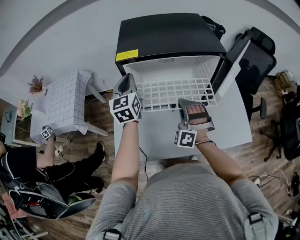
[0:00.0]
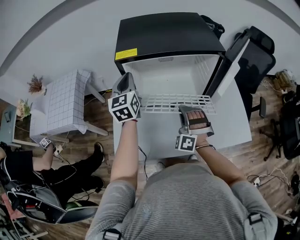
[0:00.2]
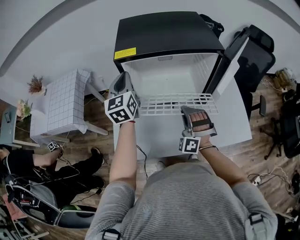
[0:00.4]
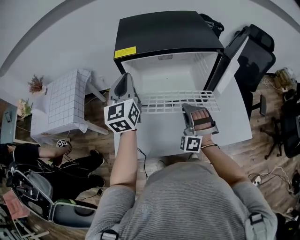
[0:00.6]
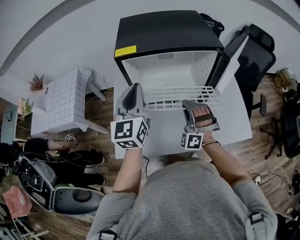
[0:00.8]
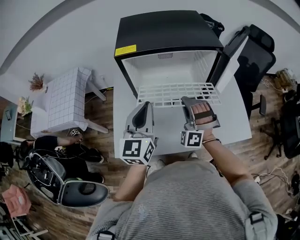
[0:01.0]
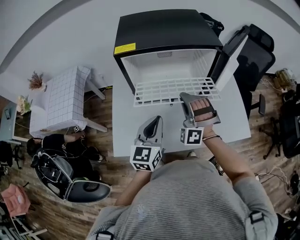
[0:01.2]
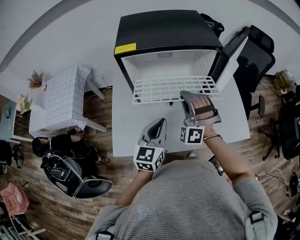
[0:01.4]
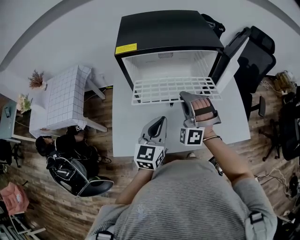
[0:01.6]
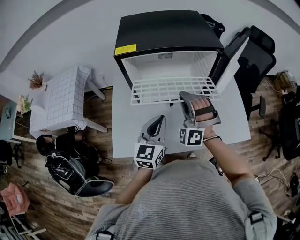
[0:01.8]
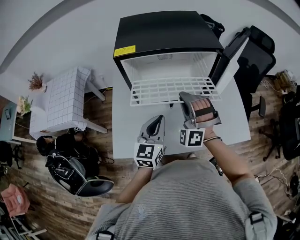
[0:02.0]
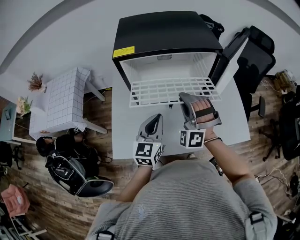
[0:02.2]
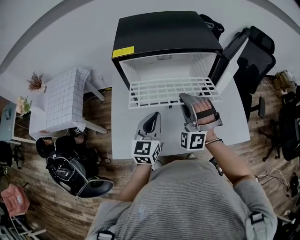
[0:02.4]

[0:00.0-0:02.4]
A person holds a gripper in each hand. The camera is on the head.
0.0 to 1.2 s: The left gripper is displaced backward and to the right by roughly 25 cm.
1.2 to 2.4 s: The grippers stay close to where they were, moving slightly.

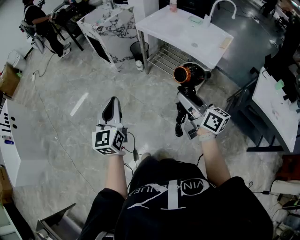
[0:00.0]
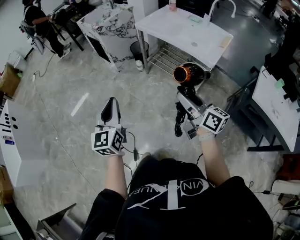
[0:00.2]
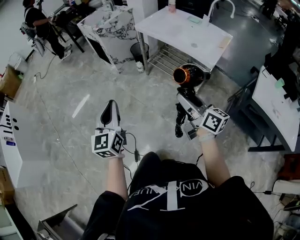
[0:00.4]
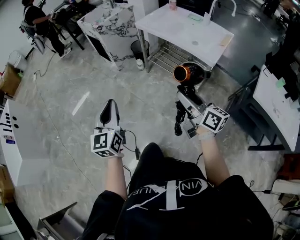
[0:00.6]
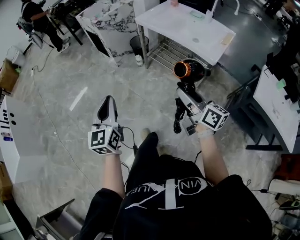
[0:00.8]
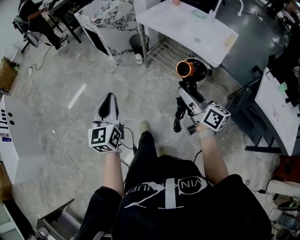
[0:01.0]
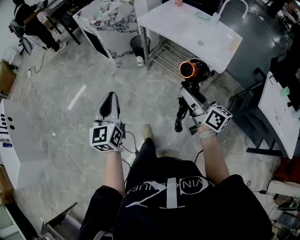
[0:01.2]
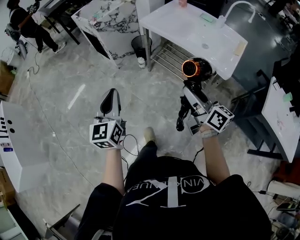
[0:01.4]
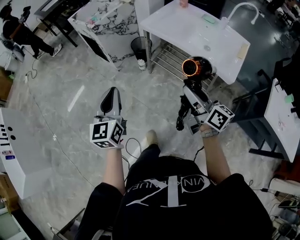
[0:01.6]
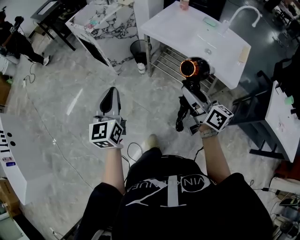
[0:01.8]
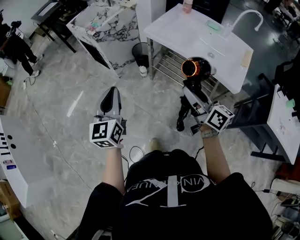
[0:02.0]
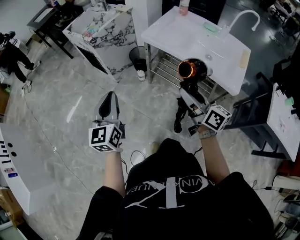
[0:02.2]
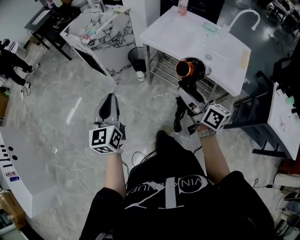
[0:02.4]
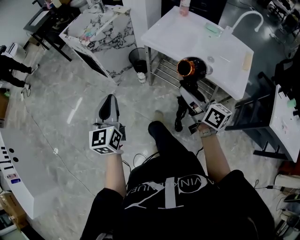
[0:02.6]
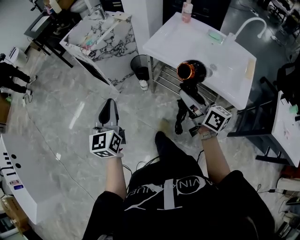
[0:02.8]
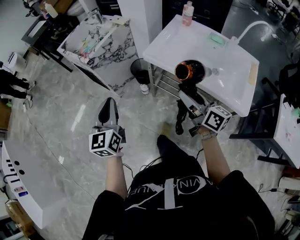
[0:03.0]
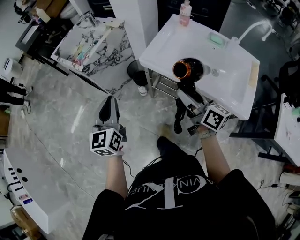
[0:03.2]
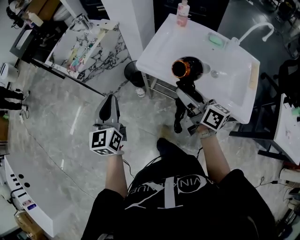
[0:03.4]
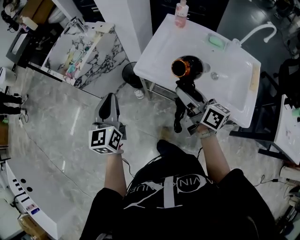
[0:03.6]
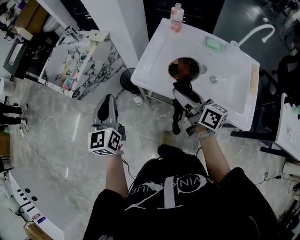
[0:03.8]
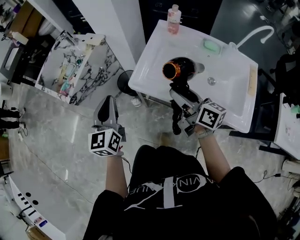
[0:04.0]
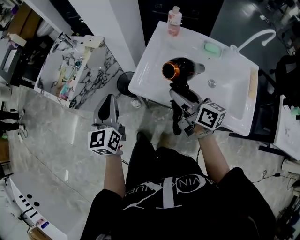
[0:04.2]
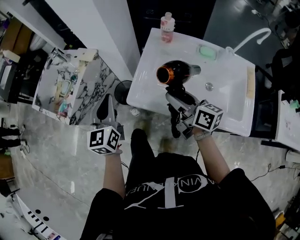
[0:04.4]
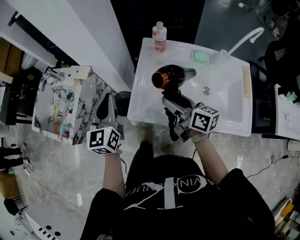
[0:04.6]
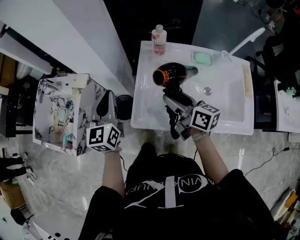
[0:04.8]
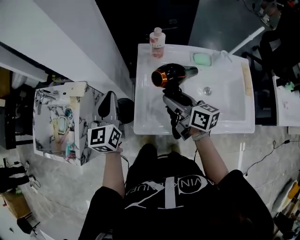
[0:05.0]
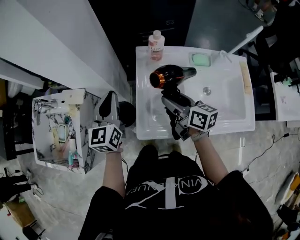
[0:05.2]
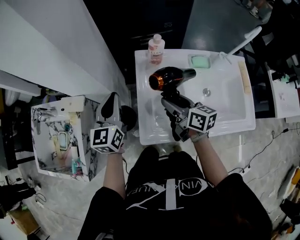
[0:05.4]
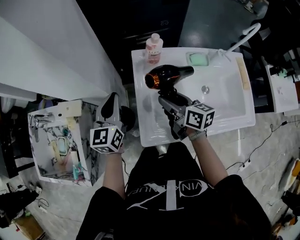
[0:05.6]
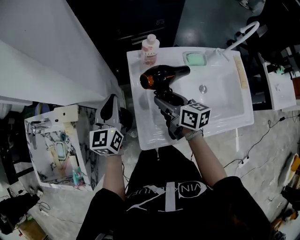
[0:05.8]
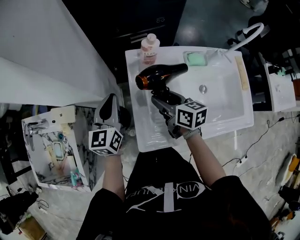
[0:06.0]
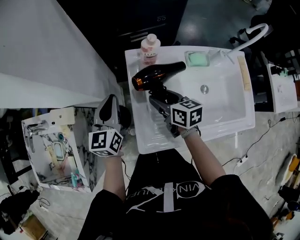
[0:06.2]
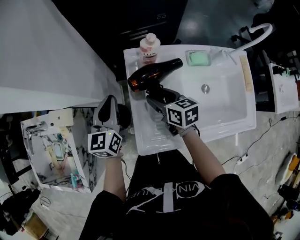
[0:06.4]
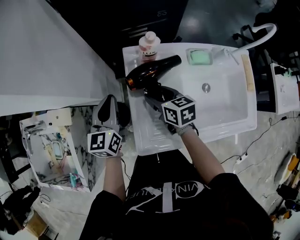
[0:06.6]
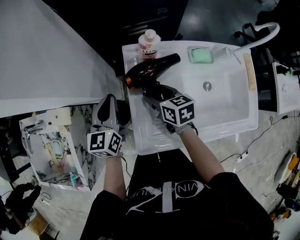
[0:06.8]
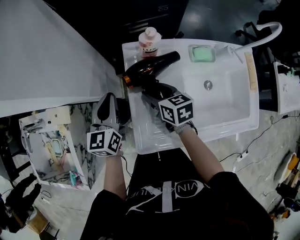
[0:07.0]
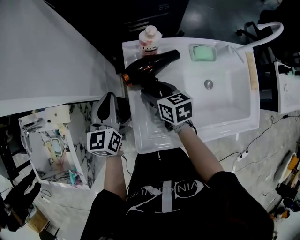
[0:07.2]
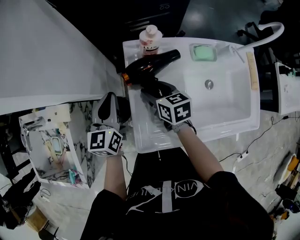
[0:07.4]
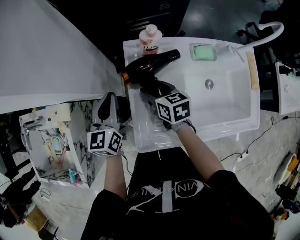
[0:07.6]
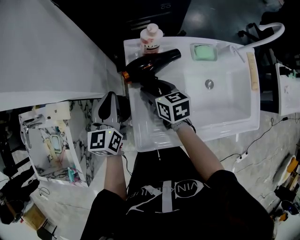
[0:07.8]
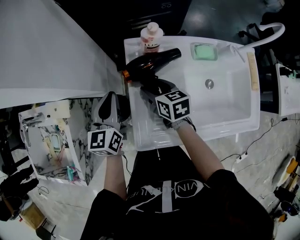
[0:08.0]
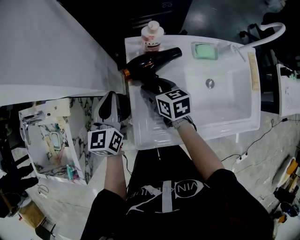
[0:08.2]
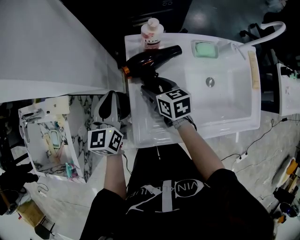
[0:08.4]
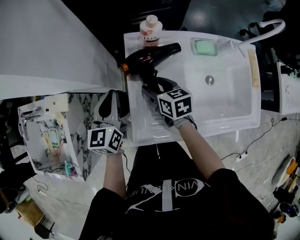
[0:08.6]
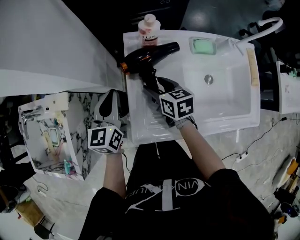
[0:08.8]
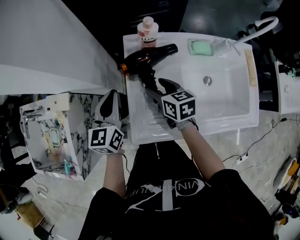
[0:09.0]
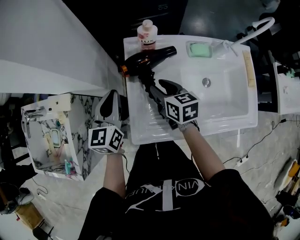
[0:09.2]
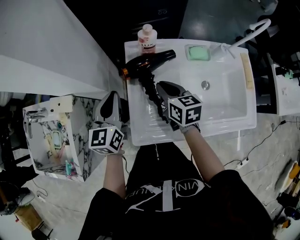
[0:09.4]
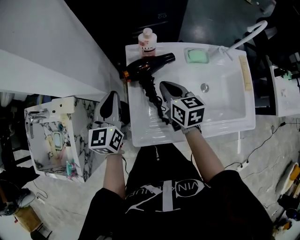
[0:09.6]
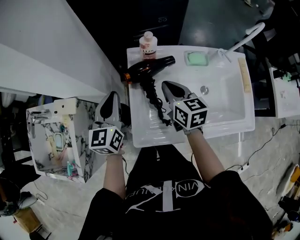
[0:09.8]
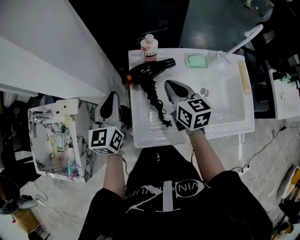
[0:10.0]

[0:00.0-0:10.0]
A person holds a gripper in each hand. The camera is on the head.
0.0 to 1.4 s: The grippers both shift forward by approximately 15 cm.
1.4 to 2.8 s: The two grippers go roughly 25 cm forward.
2.8 to 4.2 s: The two grippers go approximately 30 cm forward.
4.2 to 5.8 s: The right gripper ends up approximately 20 cm from where it was, and turns by some 30 degrees. The left gripper ends up roughly 30 cm from where it was, and changes its angle by some 30 degrees.
5.8 to 7.2 s: The left gripper goes roughly 5 cm downward. Meanwhile the right gripper goes about 10 cm downward and forward.
7.2 to 8.6 s: There are only small adjustments of the grippers.
8.6 to 10.0 s: The right gripper moves upward and to the right, some 15 cm, changes its angle by some 20 degrees, and closes. Meanwhile the left gripper shifts roughly 10 cm upward.

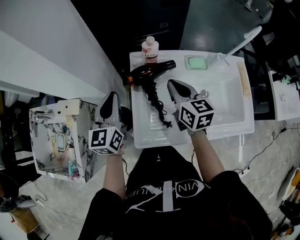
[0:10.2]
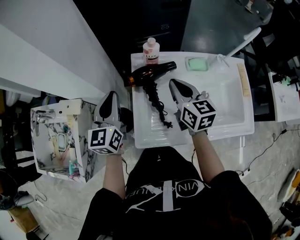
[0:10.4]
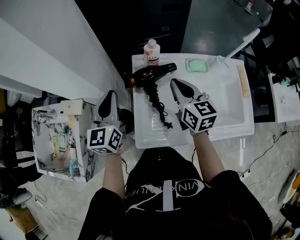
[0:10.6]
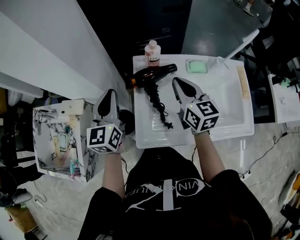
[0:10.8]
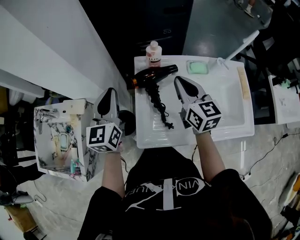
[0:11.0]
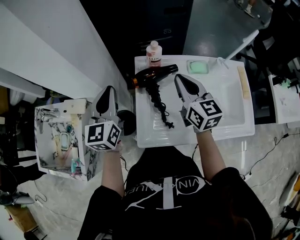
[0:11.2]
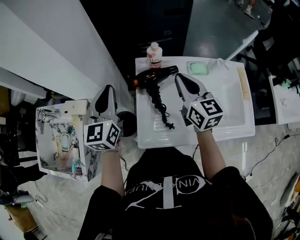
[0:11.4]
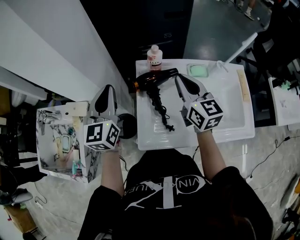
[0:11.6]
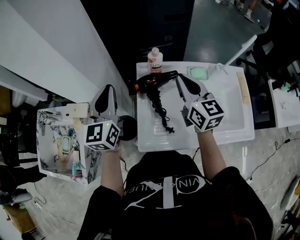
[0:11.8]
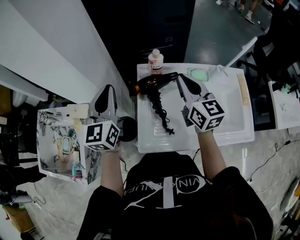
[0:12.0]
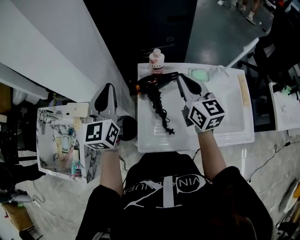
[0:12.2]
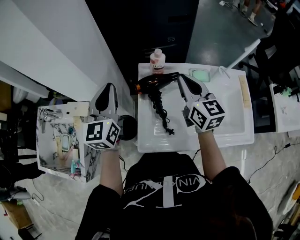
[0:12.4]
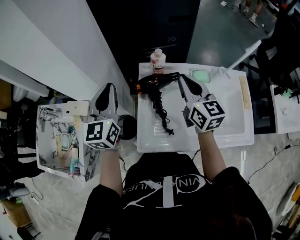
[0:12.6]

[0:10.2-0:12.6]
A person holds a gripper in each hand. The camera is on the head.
10.2 to 11.4 s: Both grippers move upward, roughly 5 cm.
11.4 to 12.6 s: The grippers stay close to where they were, moving slightly.

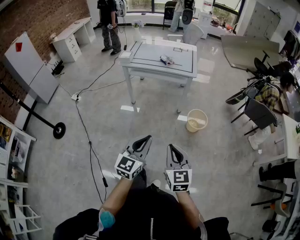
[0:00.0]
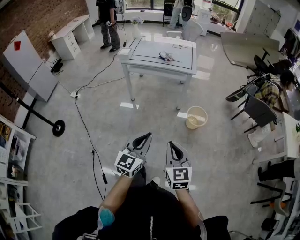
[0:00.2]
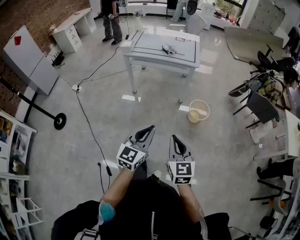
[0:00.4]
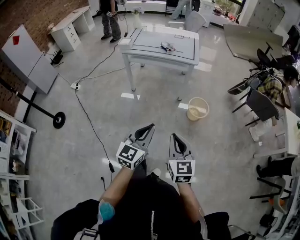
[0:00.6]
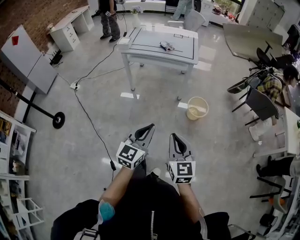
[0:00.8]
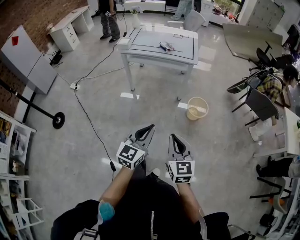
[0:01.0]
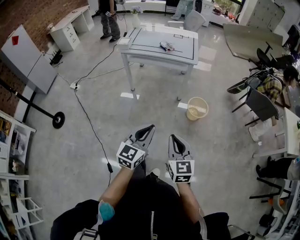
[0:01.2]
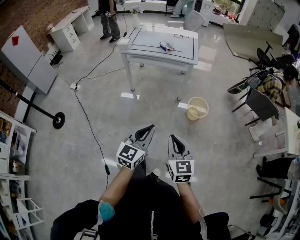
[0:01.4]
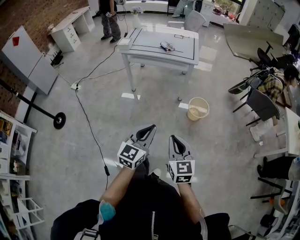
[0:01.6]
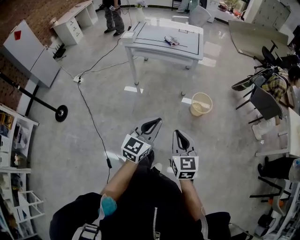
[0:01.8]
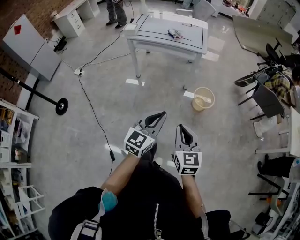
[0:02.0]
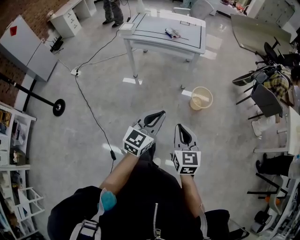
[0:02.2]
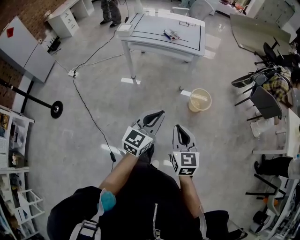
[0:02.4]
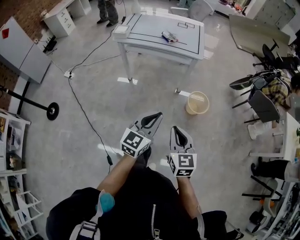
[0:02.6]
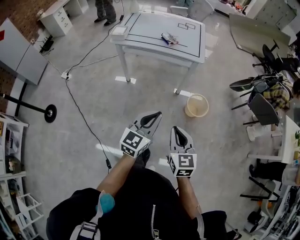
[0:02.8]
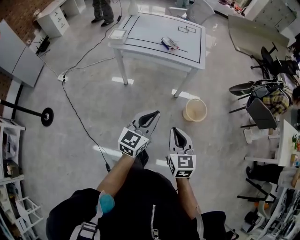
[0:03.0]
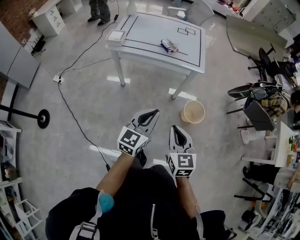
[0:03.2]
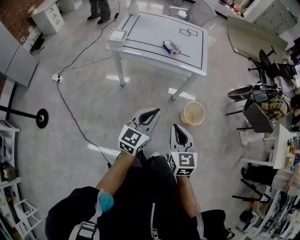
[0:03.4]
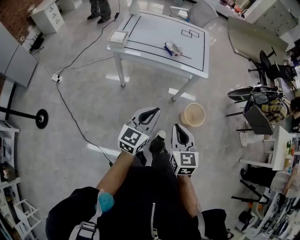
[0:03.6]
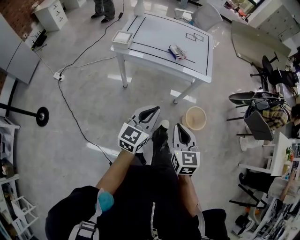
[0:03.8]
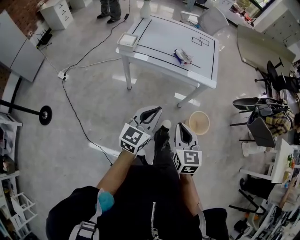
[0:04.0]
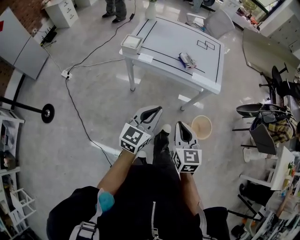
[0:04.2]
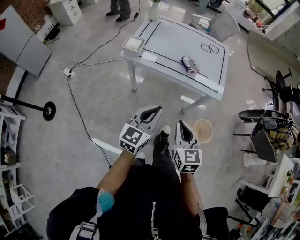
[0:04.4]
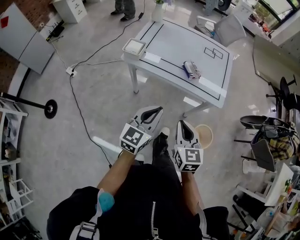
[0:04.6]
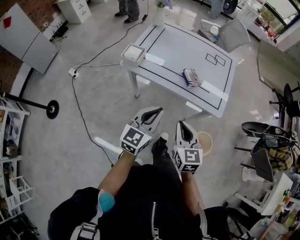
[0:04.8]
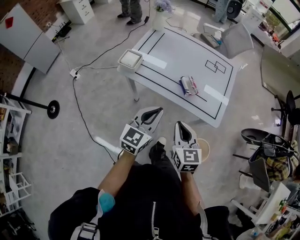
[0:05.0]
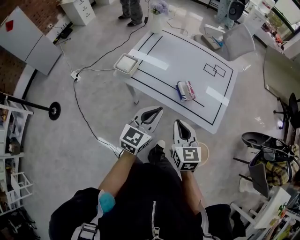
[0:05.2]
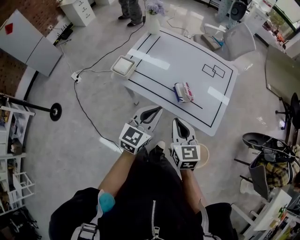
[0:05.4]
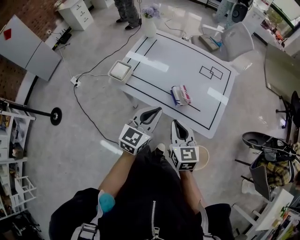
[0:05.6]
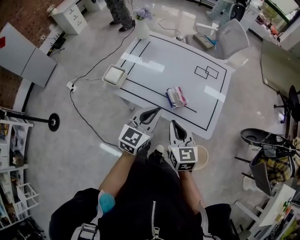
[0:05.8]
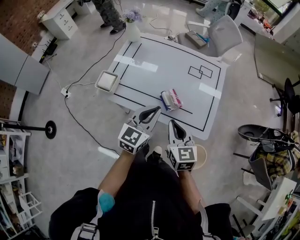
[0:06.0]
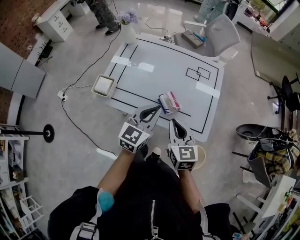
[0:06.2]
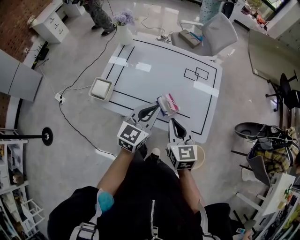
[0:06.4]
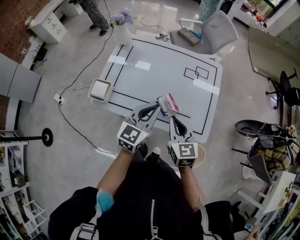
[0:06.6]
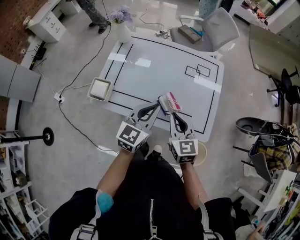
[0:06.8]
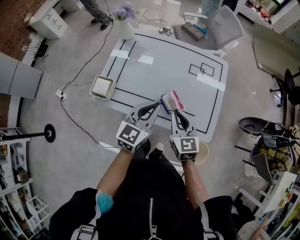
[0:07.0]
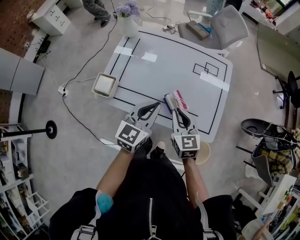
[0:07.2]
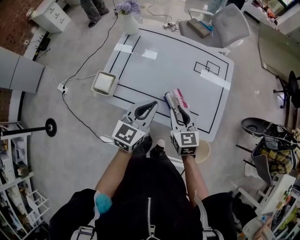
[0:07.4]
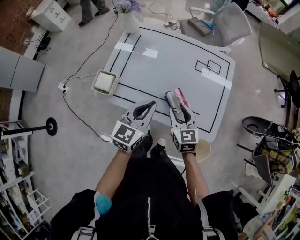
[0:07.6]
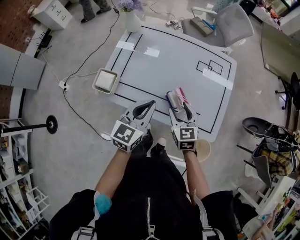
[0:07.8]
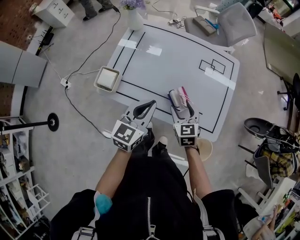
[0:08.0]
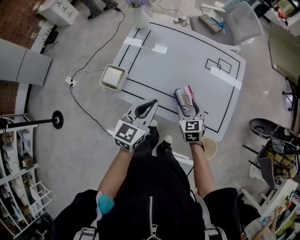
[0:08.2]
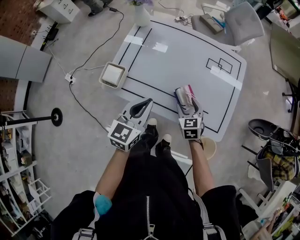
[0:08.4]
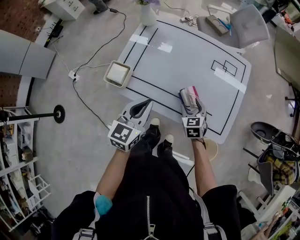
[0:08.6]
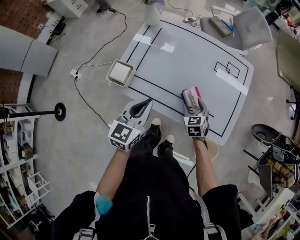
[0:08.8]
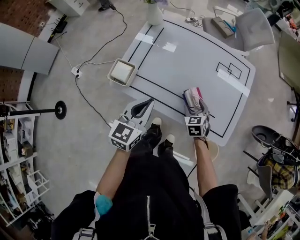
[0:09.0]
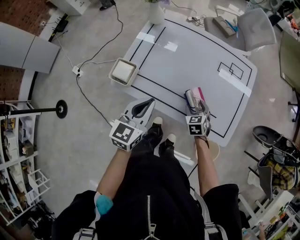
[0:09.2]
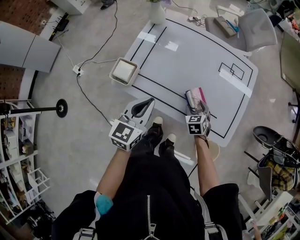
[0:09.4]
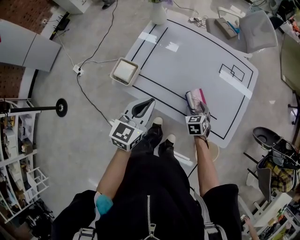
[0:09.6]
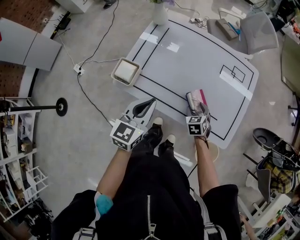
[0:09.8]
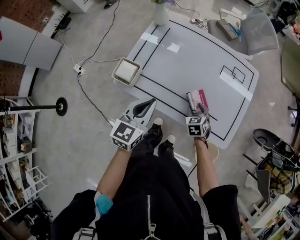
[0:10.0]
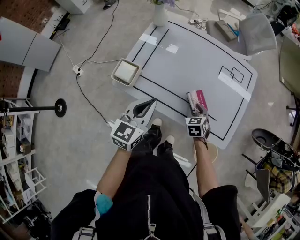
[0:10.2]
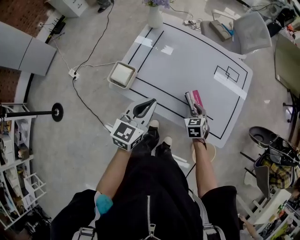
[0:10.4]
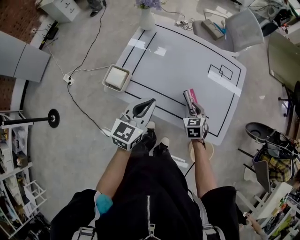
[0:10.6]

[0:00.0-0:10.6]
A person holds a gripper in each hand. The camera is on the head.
0.0 to 1.6 s: The grippers stay close to where they were, moving slightly.
1.6 to 3.0 s: Both grippers travel together forward, approximately 25 cm.
3.0 to 4.6 s: The left gripper moves forward and to the left, roughly 25 cm. The right gripper moves forward, approximately 25 cm.
4.6 to 6.0 s: The left gripper heads forward and to the right, covering about 30 cm. The right gripper moves forward, some 25 cm.
6.0 to 7.6 s: The left gripper shifts roughly 10 cm forward and to the left, while the right gripper travels forward and downward by some 15 cm, and opens up.
7.6 to 9.0 s: The right gripper travels downward by roughly 15 cm, turns by roughly 20 degrees, and opens its fingers. The left gripper shifts roughly 10 cm to the left.
9.0 to 10.6 s: The right gripper closes up.
